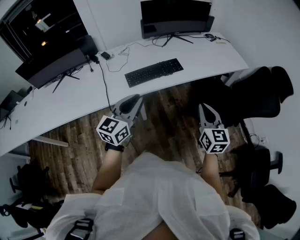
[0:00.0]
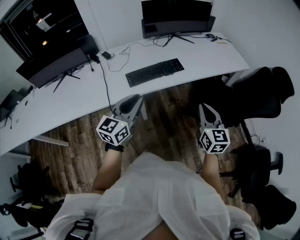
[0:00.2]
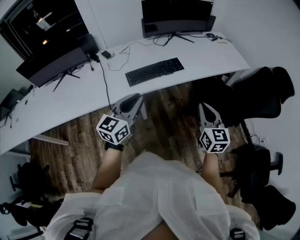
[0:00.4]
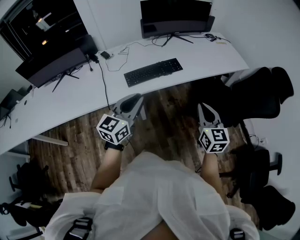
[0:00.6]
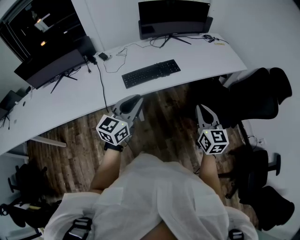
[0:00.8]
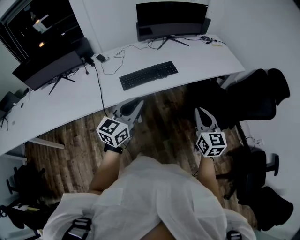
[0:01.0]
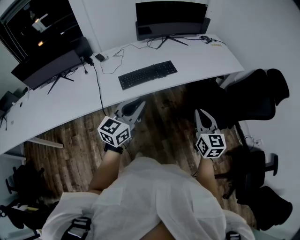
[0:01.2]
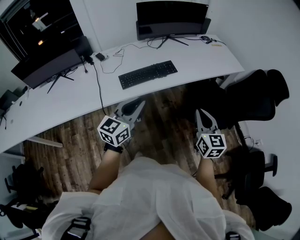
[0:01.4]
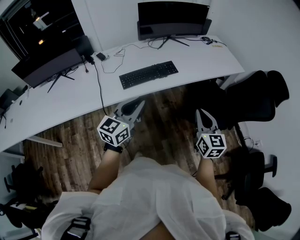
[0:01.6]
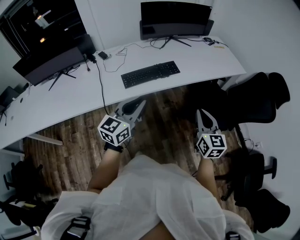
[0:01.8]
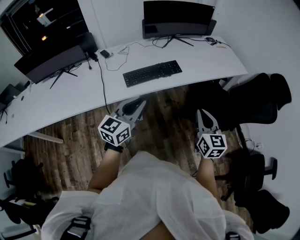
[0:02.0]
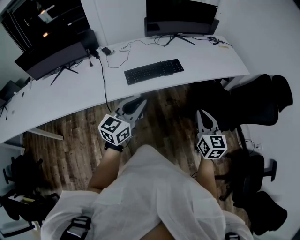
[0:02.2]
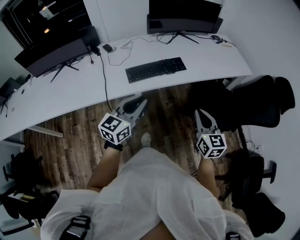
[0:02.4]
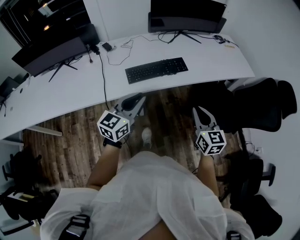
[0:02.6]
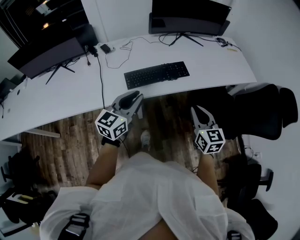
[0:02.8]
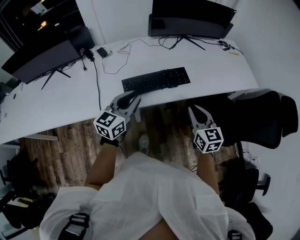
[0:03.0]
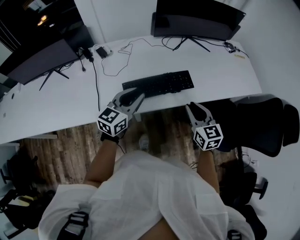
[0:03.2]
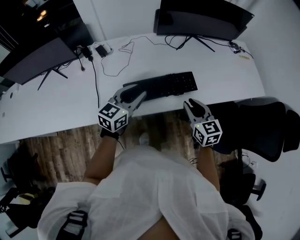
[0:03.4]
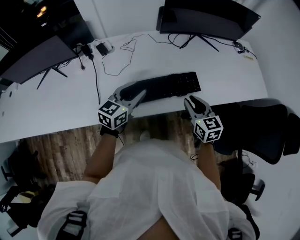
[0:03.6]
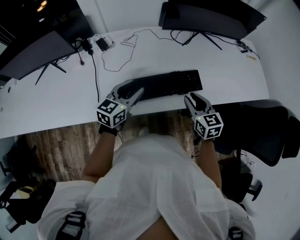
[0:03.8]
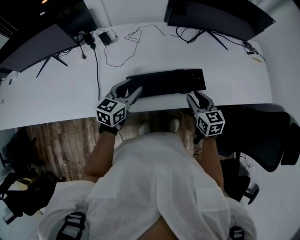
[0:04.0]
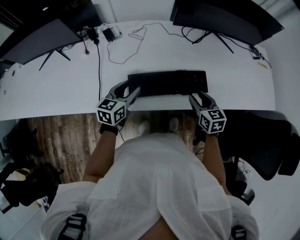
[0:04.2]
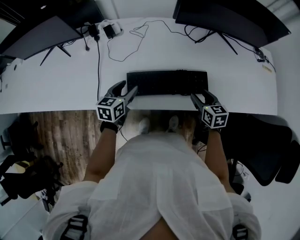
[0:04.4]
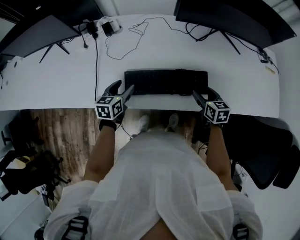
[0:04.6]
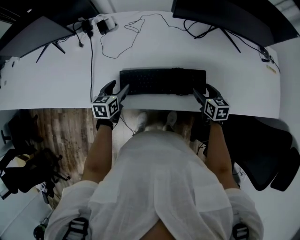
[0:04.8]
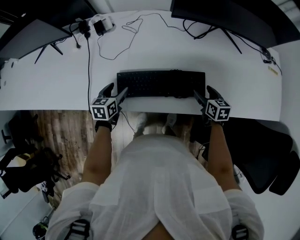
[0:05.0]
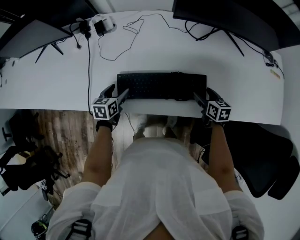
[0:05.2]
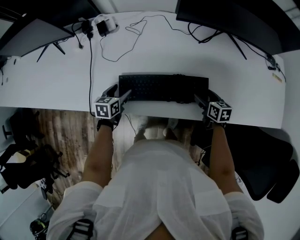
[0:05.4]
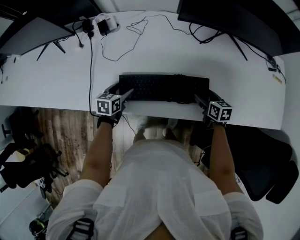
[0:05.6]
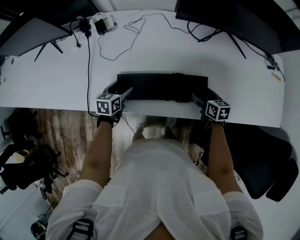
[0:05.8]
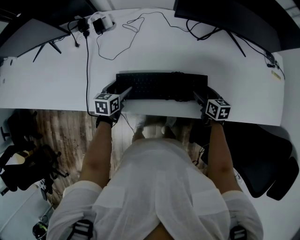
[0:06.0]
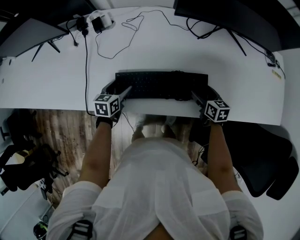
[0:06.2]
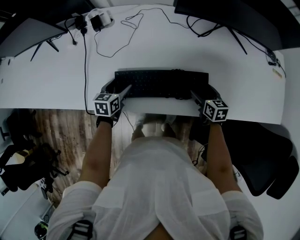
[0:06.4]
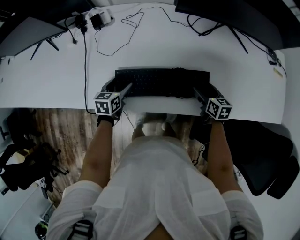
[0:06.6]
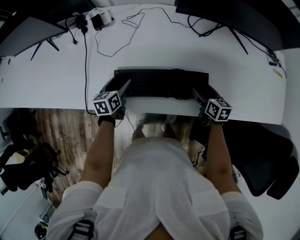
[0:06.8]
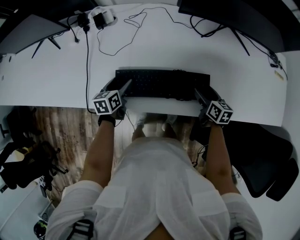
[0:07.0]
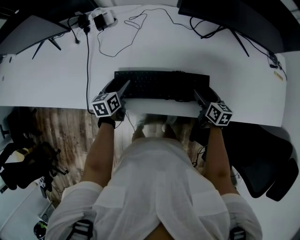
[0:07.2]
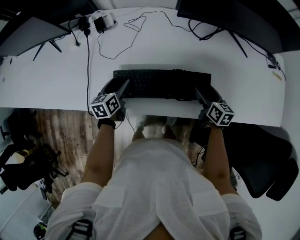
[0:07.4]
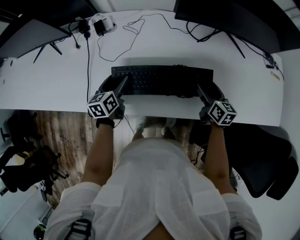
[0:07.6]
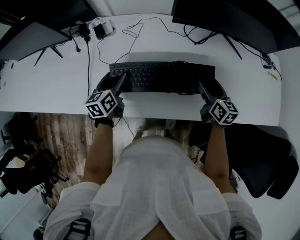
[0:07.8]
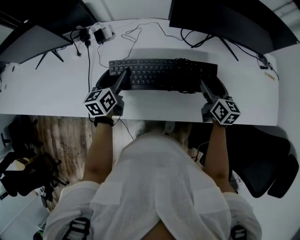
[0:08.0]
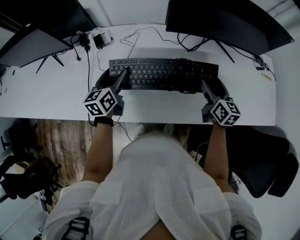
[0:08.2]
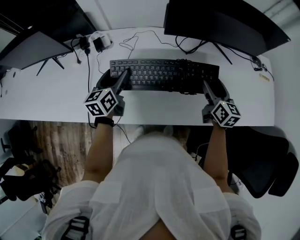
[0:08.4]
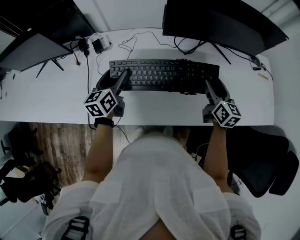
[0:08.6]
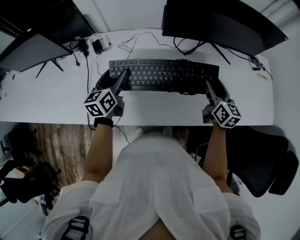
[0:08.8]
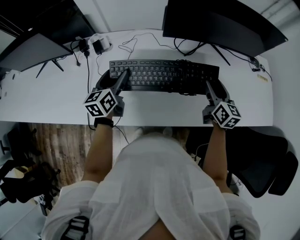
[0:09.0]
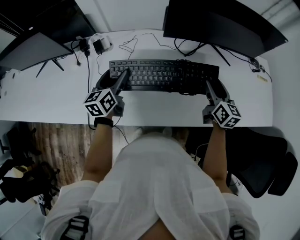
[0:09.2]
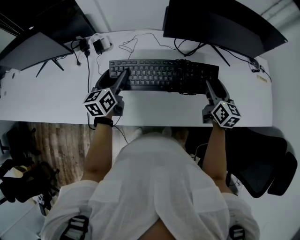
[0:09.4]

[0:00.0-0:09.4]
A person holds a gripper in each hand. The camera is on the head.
0:00.0 to 0:01.6: There are only small adjustments of the grippers.
0:01.6 to 0:03.2: The grippers both shift forward and to the left by about 25 cm. The right gripper rotates roughly 20 degrees.
0:03.2 to 0:04.8: The right gripper heads forward and downward, covering roughly 30 cm, swivels some 30 degrees, and opens, while the left gripper heads downward, forward and to the left, covering roughly 25 cm, tips its fingers downward by approximately 30 degrees, and opens.
0:04.8 to 0:06.2: The two grippers go about 5 cm downward.
0:06.2 to 0:07.8: The right gripper is displaced upward by some 10 cm, and changes its angle by roughly 20 degrees. Meanwhile the left gripper moves upward and forward, approximately 15 cm, and changes its angle by approximately 20 degrees.
0:07.8 to 0:09.4: Both grippers move upward, some 10 cm.

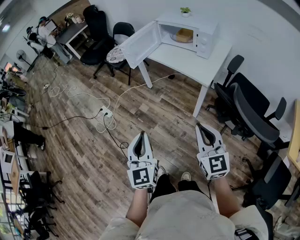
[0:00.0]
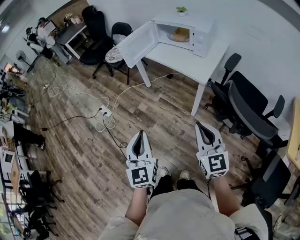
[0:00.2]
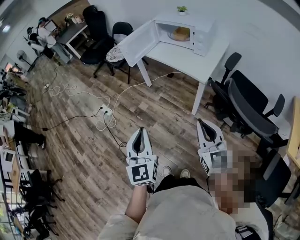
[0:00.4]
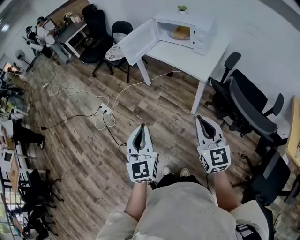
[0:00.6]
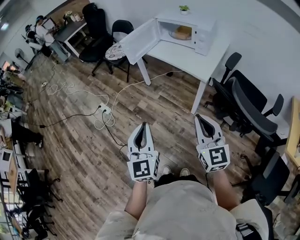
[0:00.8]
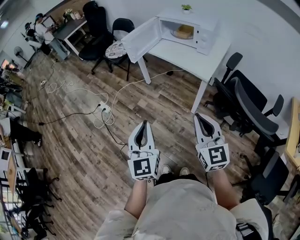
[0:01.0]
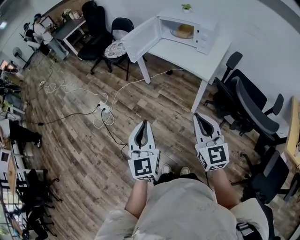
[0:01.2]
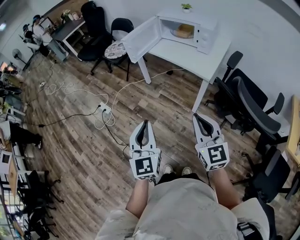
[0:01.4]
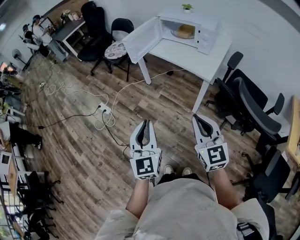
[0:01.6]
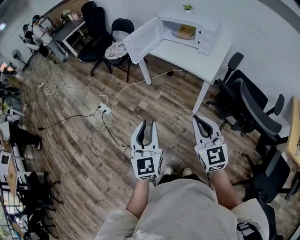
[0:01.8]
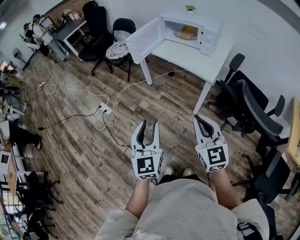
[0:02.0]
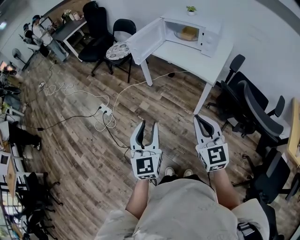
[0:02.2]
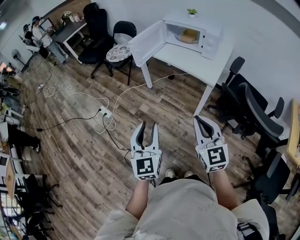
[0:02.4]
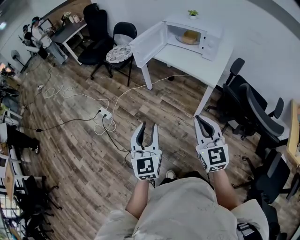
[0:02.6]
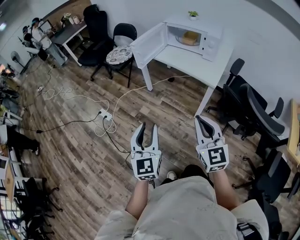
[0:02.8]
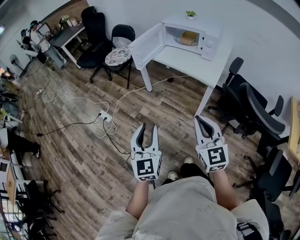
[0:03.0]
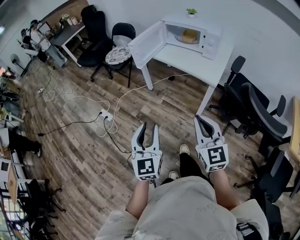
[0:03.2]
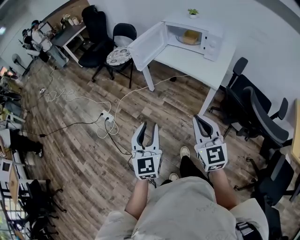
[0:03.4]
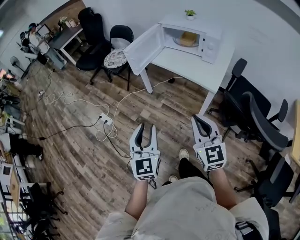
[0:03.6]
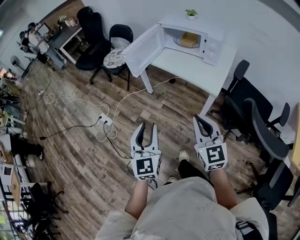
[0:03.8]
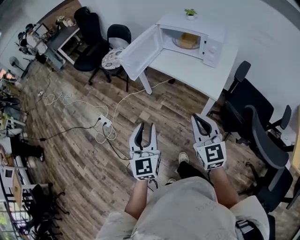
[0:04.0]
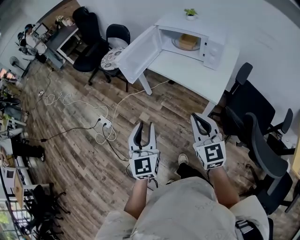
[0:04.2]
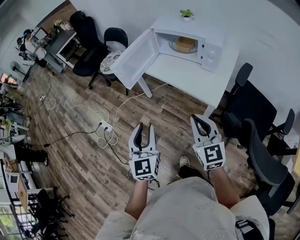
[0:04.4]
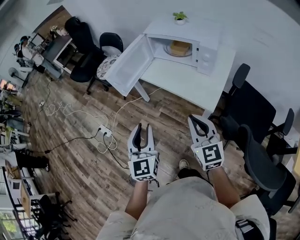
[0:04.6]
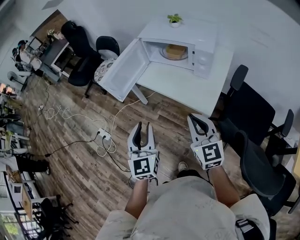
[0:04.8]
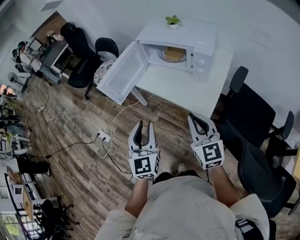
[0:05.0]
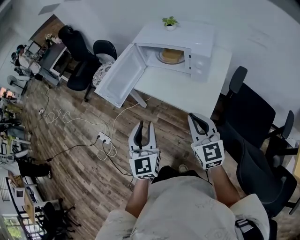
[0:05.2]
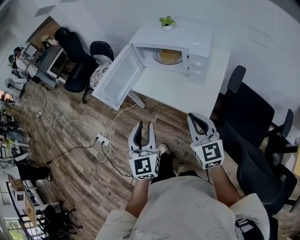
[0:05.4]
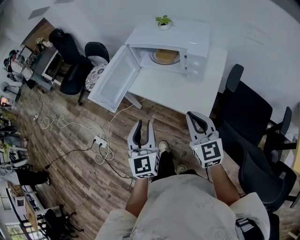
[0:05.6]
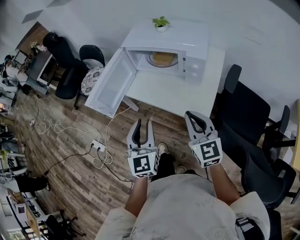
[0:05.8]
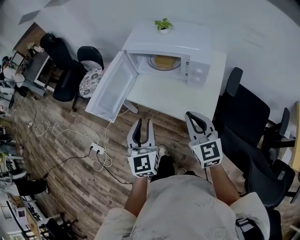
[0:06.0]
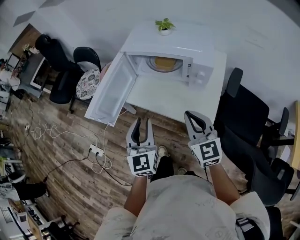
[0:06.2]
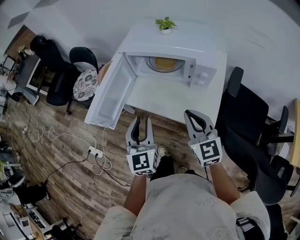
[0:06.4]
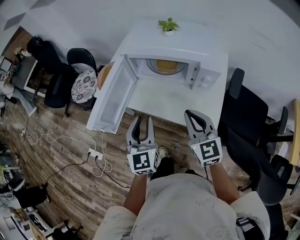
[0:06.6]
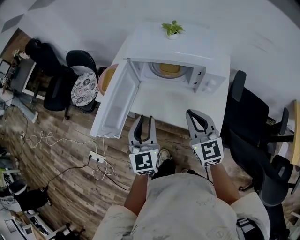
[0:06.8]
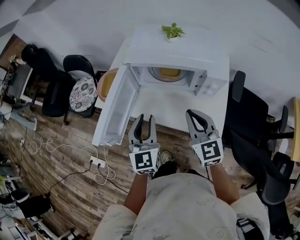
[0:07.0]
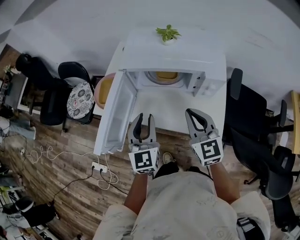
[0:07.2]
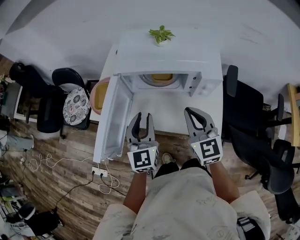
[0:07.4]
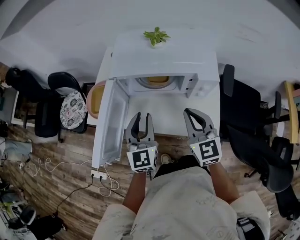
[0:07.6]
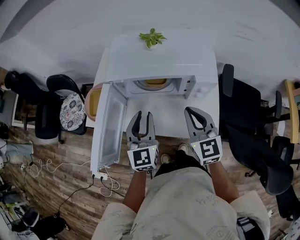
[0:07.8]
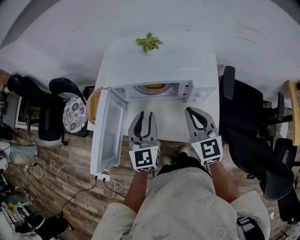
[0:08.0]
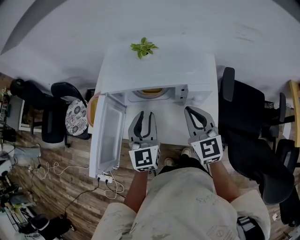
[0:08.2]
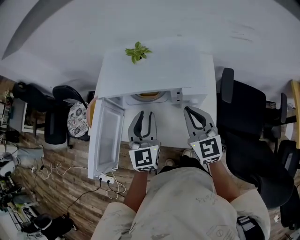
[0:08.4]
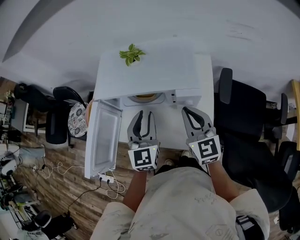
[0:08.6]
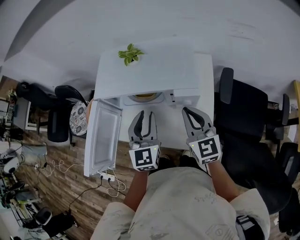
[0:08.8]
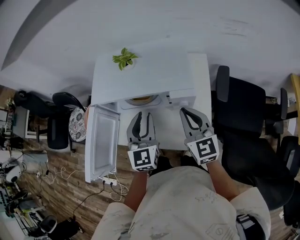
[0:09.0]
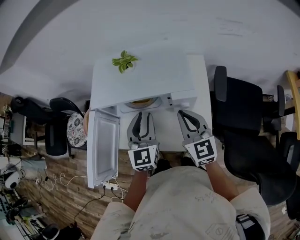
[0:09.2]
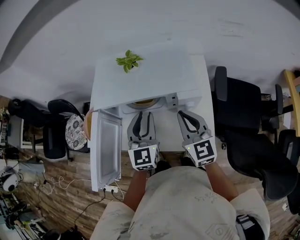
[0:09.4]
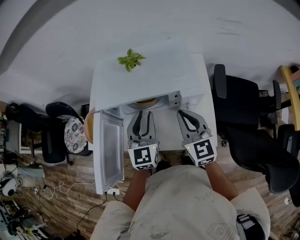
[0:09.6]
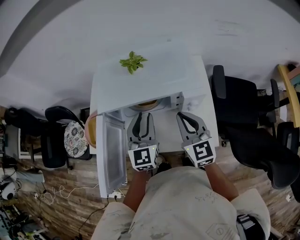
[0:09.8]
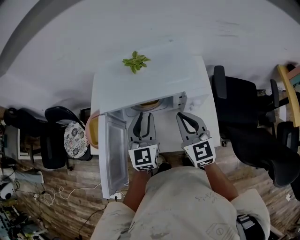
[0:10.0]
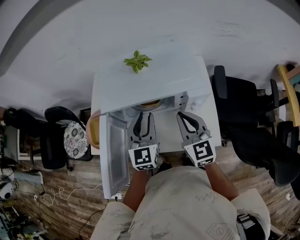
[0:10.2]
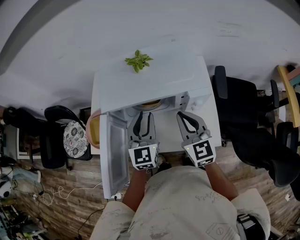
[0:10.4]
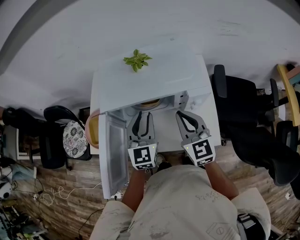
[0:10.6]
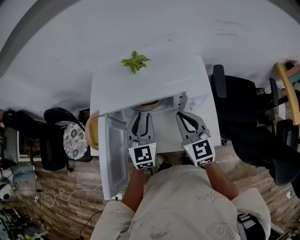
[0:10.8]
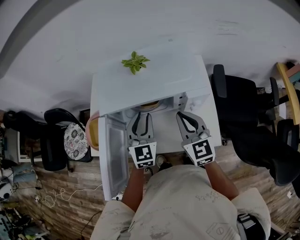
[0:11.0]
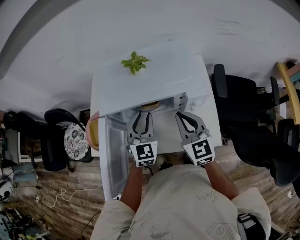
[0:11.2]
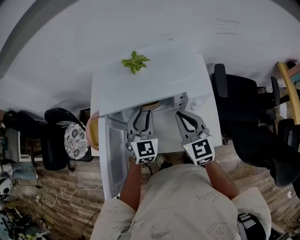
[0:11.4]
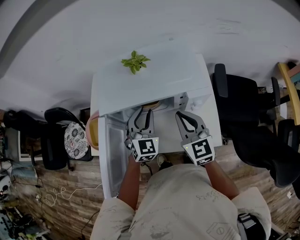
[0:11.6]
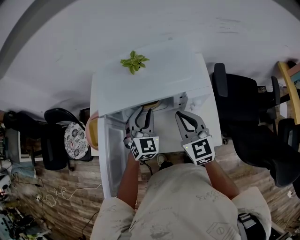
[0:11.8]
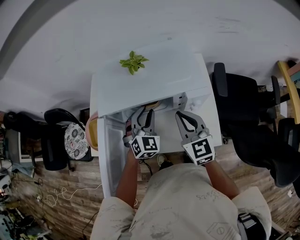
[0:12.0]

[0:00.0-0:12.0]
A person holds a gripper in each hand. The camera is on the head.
0:00.0 to 0:01.6: The right gripper shifts roughly 5 cm to the left.
0:01.6 to 0:03.0: The right gripper ends up roughly 5 cm from where it was, while the left gripper is displaced to the left by approximately 5 cm, and opens.
0:03.0 to 0:04.4: Both grippers move forward and to the right, approximately 25 cm.
0:04.4 to 0:06.0: Both grippers move forward and to the right, roughly 20 cm.
0:06.0 to 0:07.6: Both grippers travel together forward, about 20 cm.
0:07.6 to 0:09.0: The two grippers go about 15 cm to the right and forward.
0:09.0 to 0:10.4: Both grippers travel together to the left, about 10 cm.
0:10.4 to 0:12.0: The left gripper is displaced downward by roughly 5 cm, and swivels about 40 degrees.

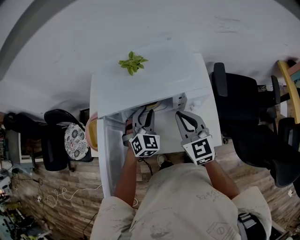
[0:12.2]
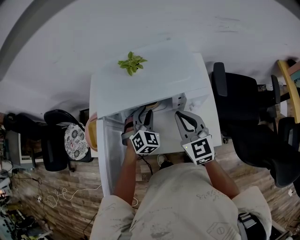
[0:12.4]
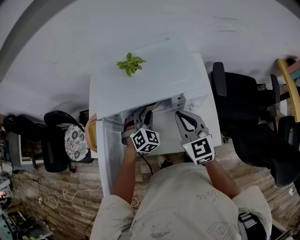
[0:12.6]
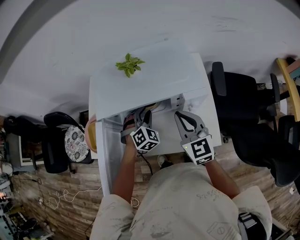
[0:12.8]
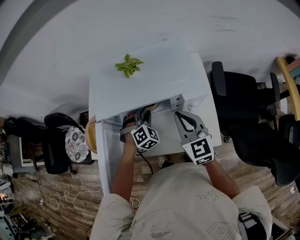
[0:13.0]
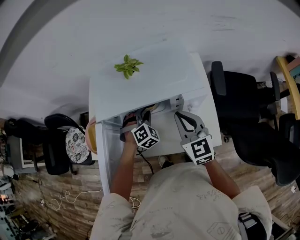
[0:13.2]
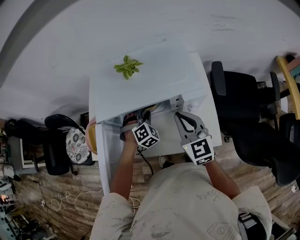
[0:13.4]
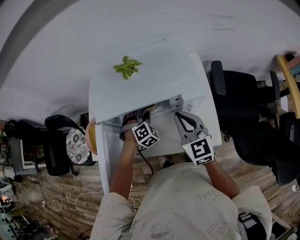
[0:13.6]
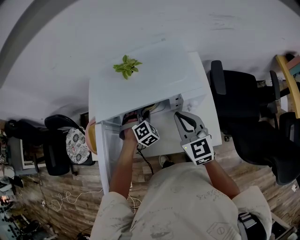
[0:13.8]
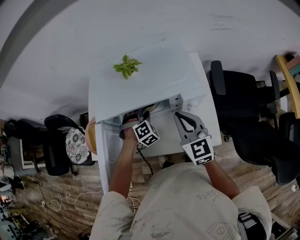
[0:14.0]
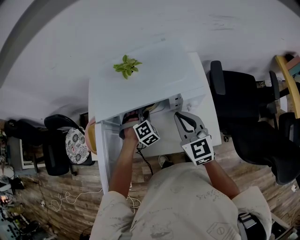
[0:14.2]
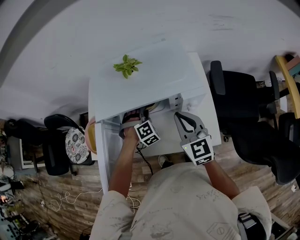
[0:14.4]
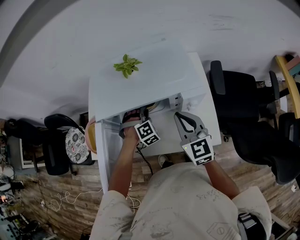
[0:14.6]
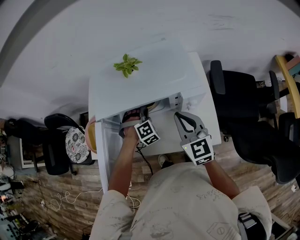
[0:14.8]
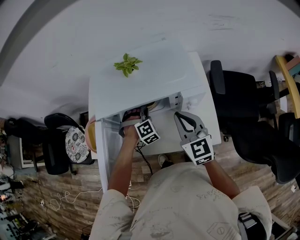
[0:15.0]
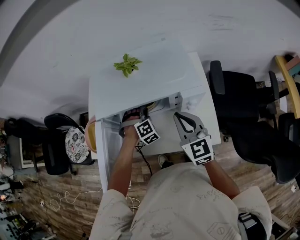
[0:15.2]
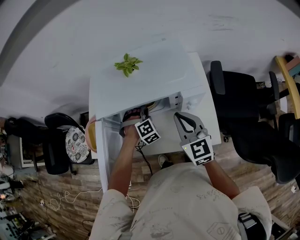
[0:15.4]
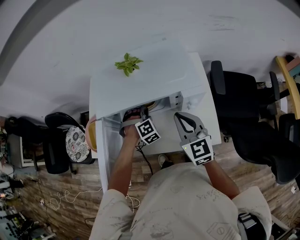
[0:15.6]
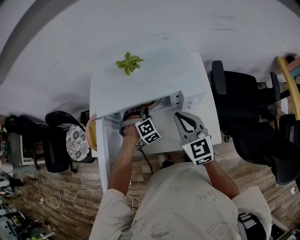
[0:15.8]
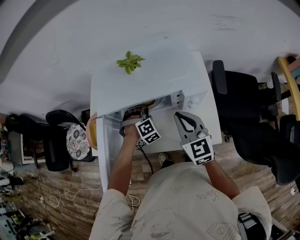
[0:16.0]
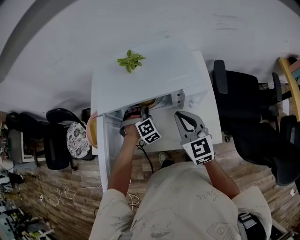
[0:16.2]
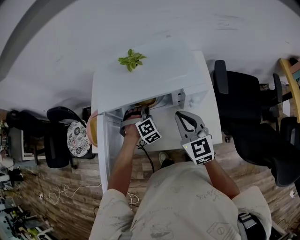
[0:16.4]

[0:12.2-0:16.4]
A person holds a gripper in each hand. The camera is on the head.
0:12.2 to 0:13.6: The left gripper shifts approximately 10 cm downward, and changes its angle by roughly 30 degrees.
0:13.6 to 0:15.0: The left gripper closes its fingers.
0:15.0 to 0:16.4: The grippers stay close to where they were, moving slightly.
